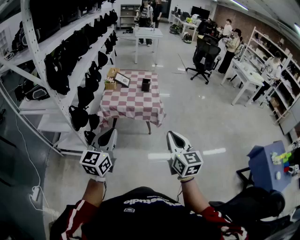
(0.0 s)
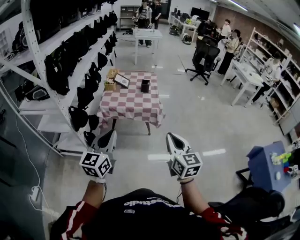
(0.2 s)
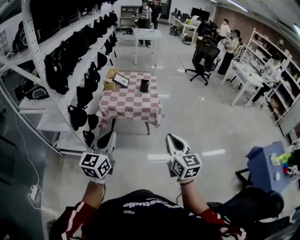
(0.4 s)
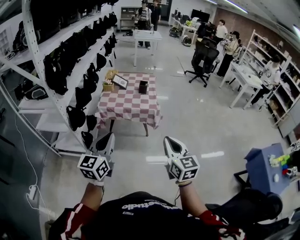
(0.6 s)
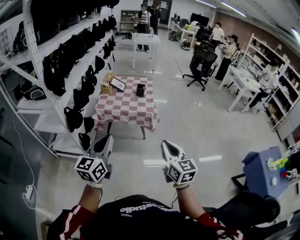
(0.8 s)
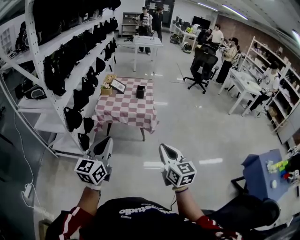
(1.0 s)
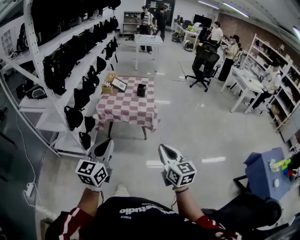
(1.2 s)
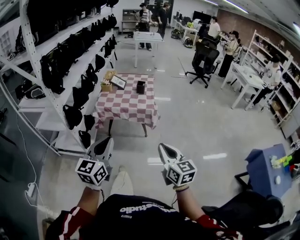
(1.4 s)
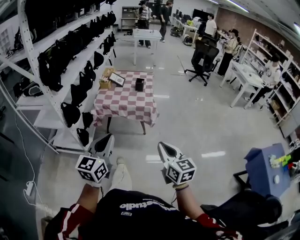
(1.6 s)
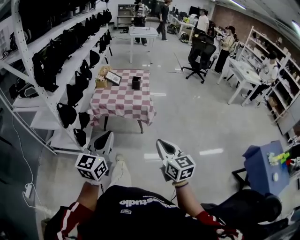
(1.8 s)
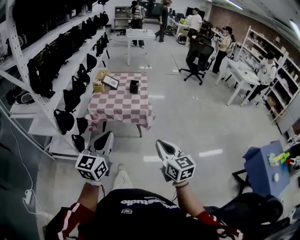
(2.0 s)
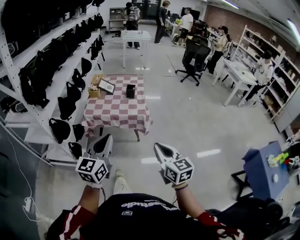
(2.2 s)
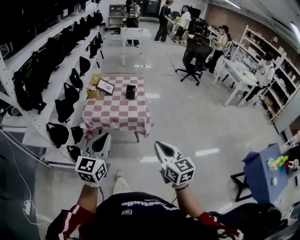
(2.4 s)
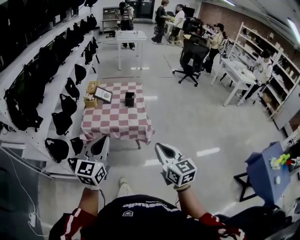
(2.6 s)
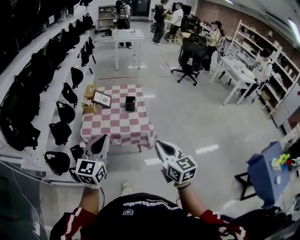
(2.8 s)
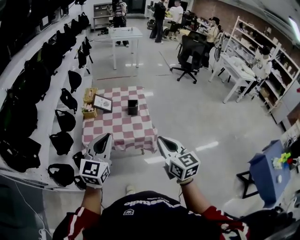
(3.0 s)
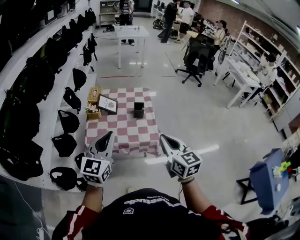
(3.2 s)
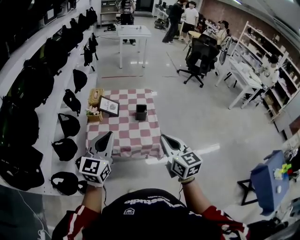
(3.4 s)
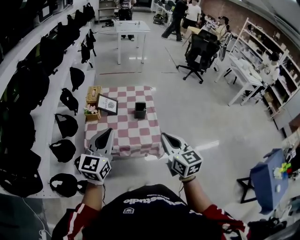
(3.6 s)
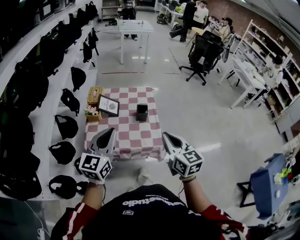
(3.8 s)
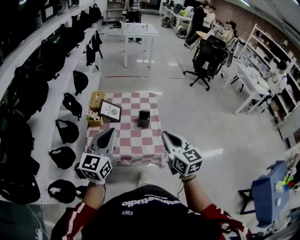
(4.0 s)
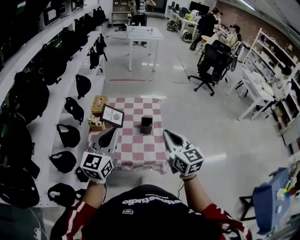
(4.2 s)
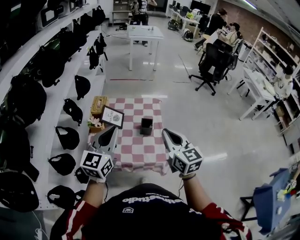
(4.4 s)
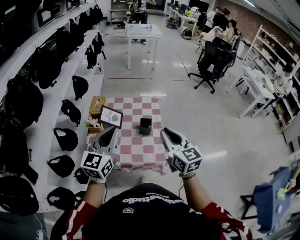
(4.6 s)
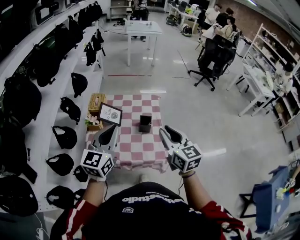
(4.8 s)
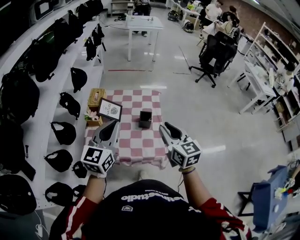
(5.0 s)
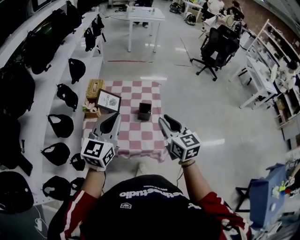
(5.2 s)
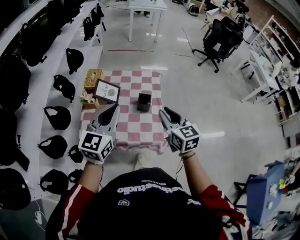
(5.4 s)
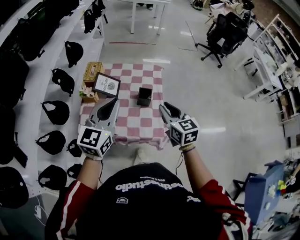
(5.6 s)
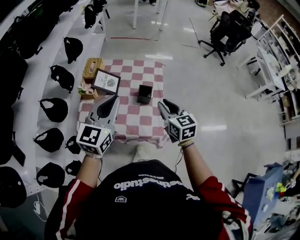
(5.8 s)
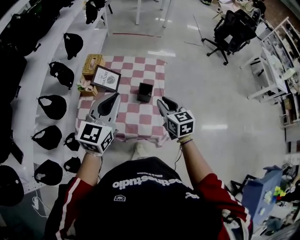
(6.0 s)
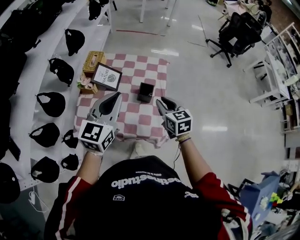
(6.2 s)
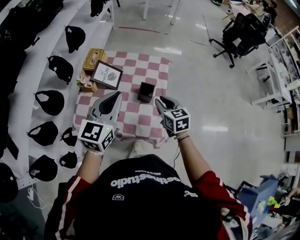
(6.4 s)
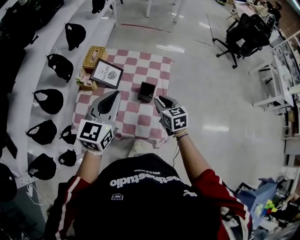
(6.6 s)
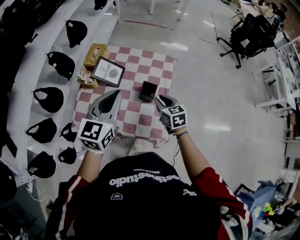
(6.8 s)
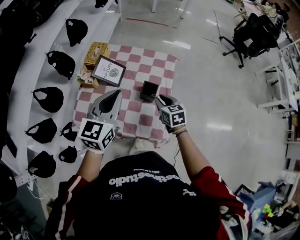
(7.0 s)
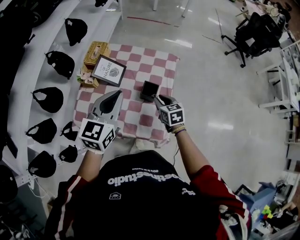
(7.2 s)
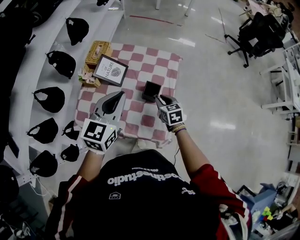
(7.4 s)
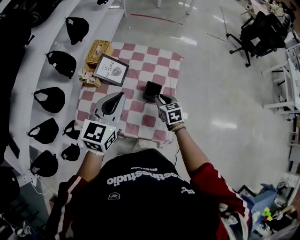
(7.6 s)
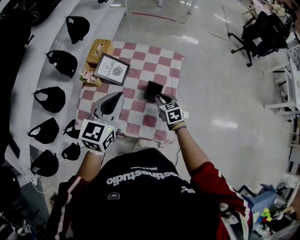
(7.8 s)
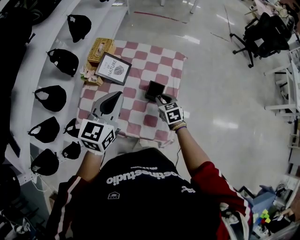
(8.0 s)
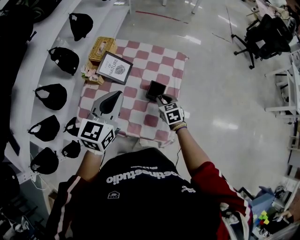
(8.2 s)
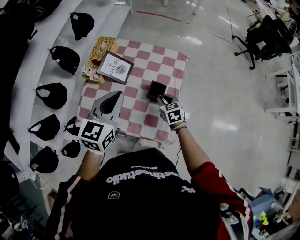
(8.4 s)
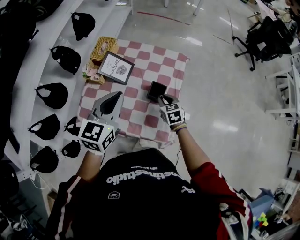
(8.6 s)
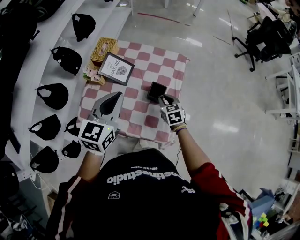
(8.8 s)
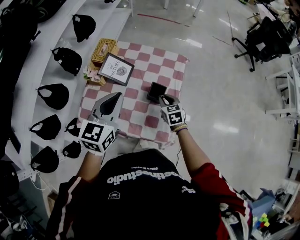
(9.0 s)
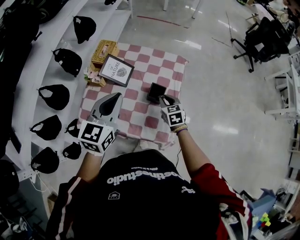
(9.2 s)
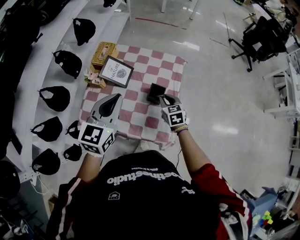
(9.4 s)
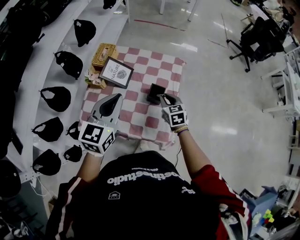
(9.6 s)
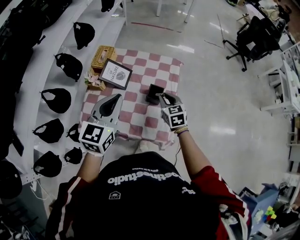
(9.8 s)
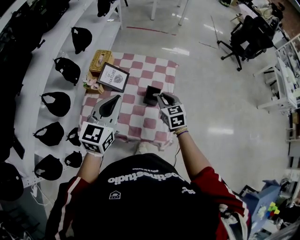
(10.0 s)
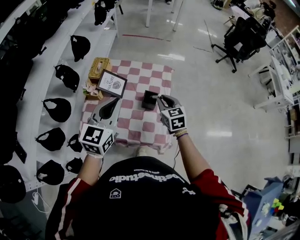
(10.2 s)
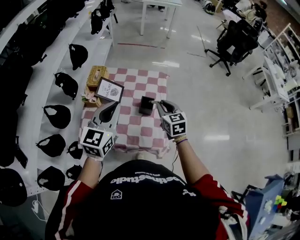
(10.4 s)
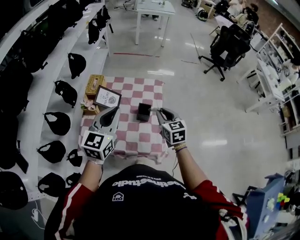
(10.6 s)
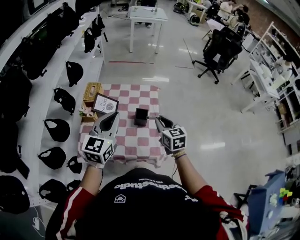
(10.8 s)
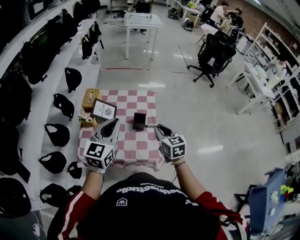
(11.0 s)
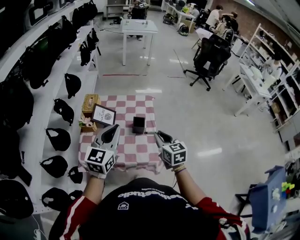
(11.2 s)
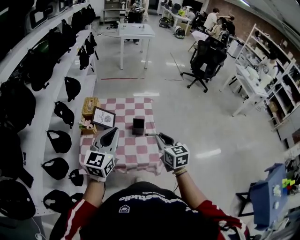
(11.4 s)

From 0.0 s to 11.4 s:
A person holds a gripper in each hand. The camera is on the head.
From 0.0 s to 1.4 s: The right gripper goes roughly 5 cm backward. The left gripper moves to the right and backward, about 10 cm.
From 1.4 s to 2.8 s: Both grippers move forward, some 30 cm.
From 2.8 s to 4.2 s: Both grippers travel together forward, roughly 30 cm.
From 4.2 s to 5.6 s: The right gripper moves downward and forward, some 15 cm. Meanwhile the left gripper is displaced forward by approximately 5 cm.
From 5.6 s to 7.2 s: The left gripper shifts roughly 10 cm forward and downward. Meanwhile the right gripper goes about 25 cm downward and forward, and rotates about 20 degrees.
From 7.2 s to 8.6 s: The right gripper moves some 5 cm.
From 8.6 s to 10.0 s: The right gripper is displaced upward by approximately 15 cm, while the left gripper shifts by about 5 cm.
From 10.0 s to 11.4 s: The right gripper is displaced backward and upward by approximately 20 cm. The left gripper goes about 10 cm backward and upward.

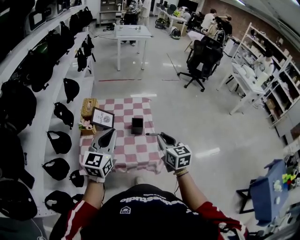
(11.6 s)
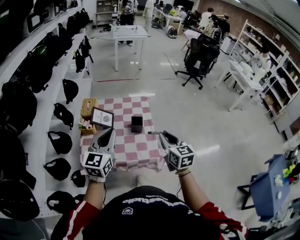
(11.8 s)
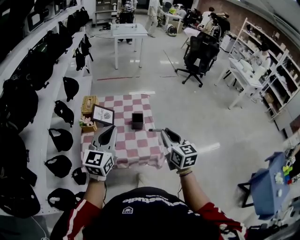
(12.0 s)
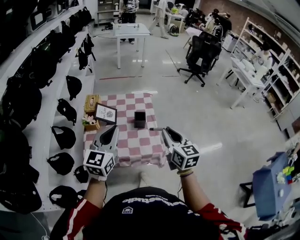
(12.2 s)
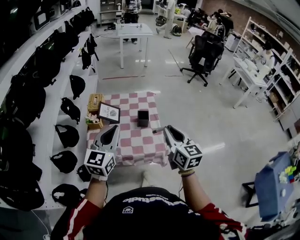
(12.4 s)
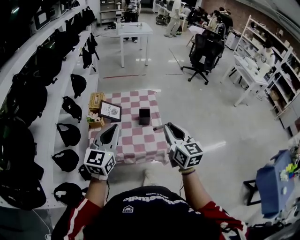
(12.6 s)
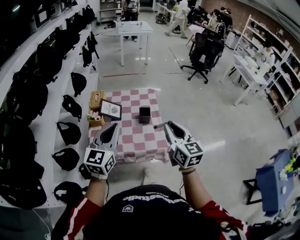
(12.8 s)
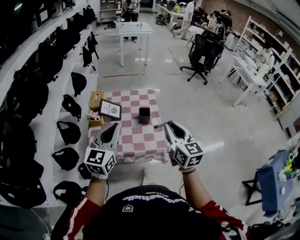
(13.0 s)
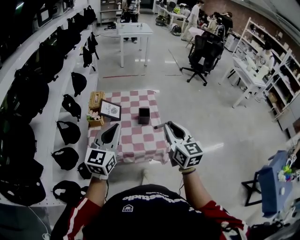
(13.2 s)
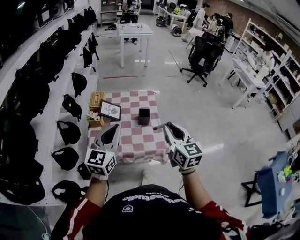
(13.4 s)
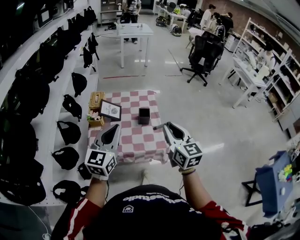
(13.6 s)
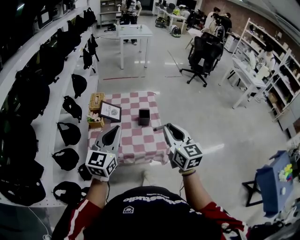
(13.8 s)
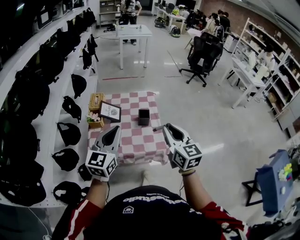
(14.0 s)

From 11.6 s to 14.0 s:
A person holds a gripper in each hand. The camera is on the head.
From 11.6 s to 12.8 s: The left gripper travels backward by roughly 5 cm; the right gripper is displaced upward and backward by about 10 cm.
From 12.8 s to 14.0 s: There are only small adjustments of the grippers.

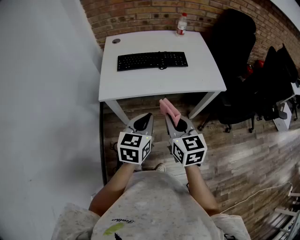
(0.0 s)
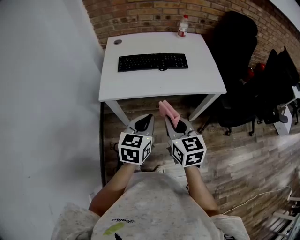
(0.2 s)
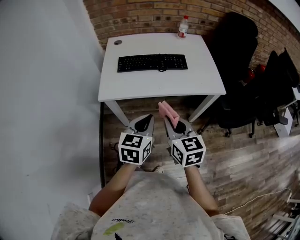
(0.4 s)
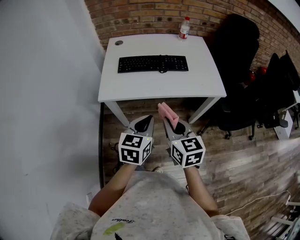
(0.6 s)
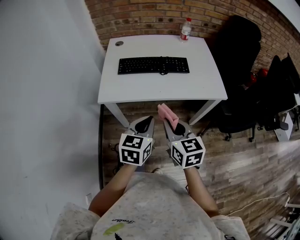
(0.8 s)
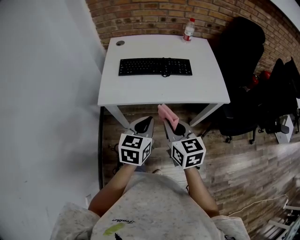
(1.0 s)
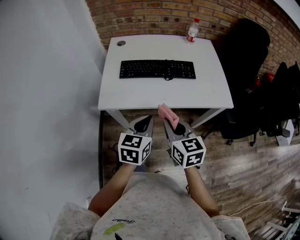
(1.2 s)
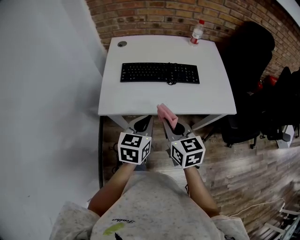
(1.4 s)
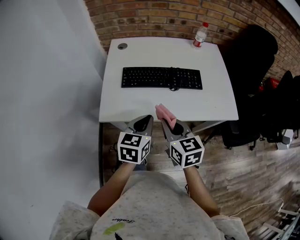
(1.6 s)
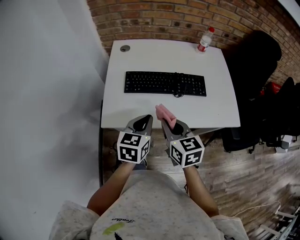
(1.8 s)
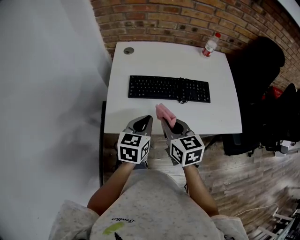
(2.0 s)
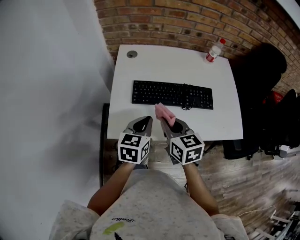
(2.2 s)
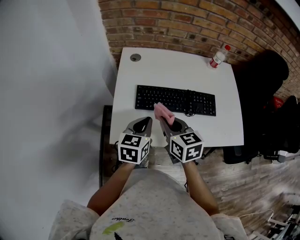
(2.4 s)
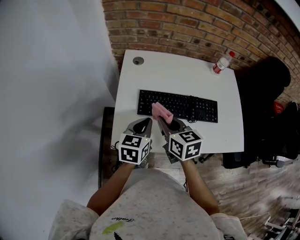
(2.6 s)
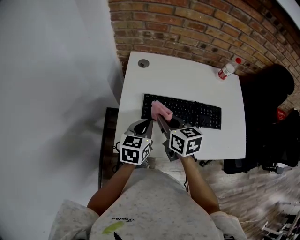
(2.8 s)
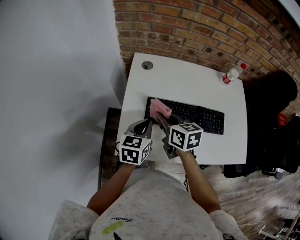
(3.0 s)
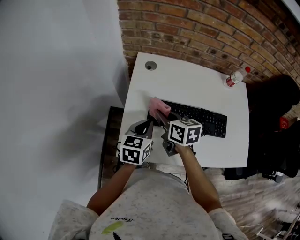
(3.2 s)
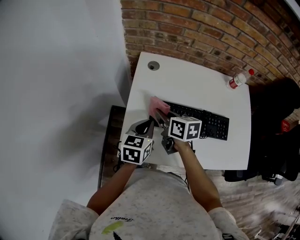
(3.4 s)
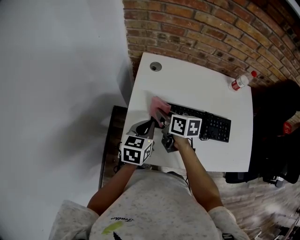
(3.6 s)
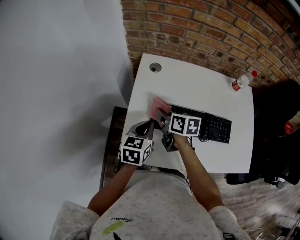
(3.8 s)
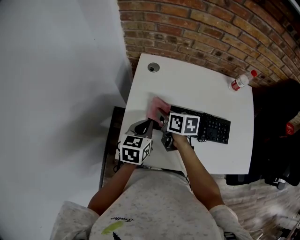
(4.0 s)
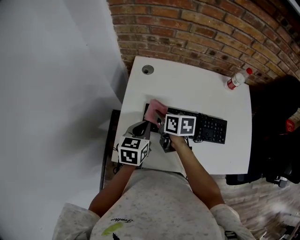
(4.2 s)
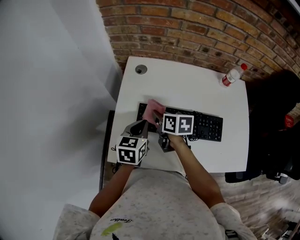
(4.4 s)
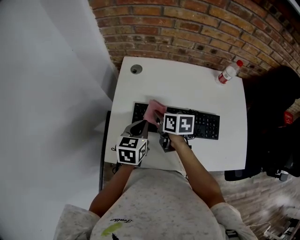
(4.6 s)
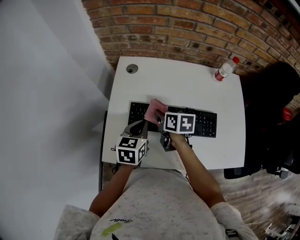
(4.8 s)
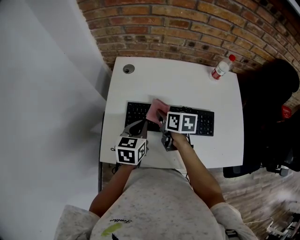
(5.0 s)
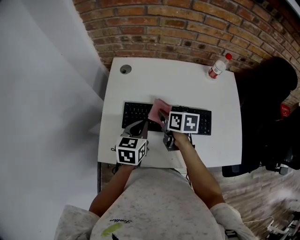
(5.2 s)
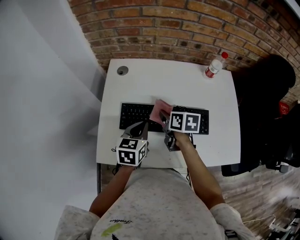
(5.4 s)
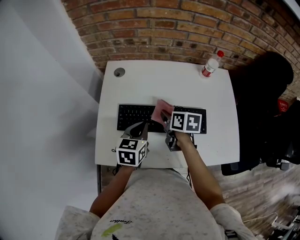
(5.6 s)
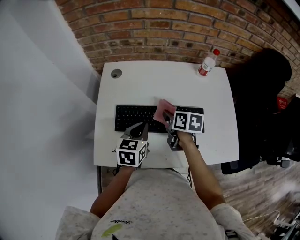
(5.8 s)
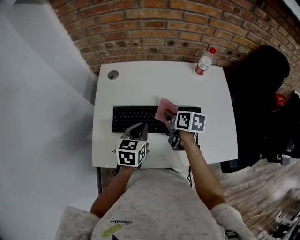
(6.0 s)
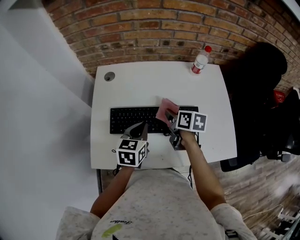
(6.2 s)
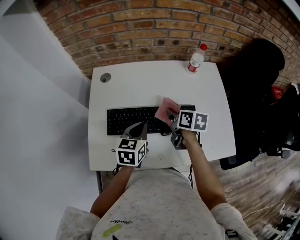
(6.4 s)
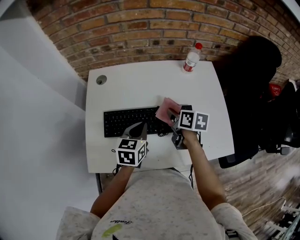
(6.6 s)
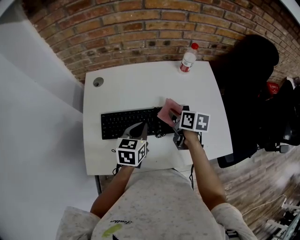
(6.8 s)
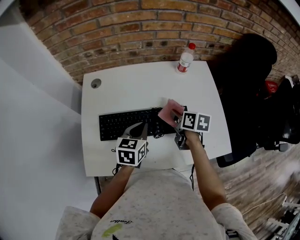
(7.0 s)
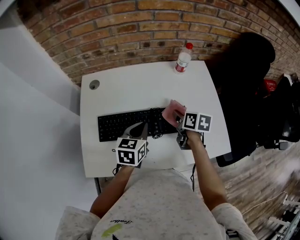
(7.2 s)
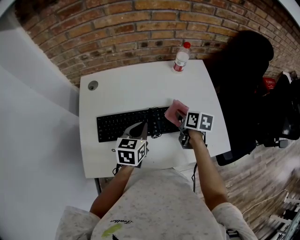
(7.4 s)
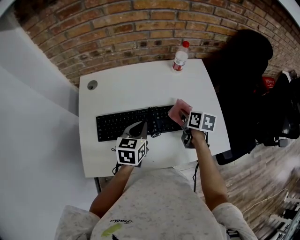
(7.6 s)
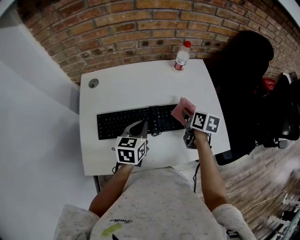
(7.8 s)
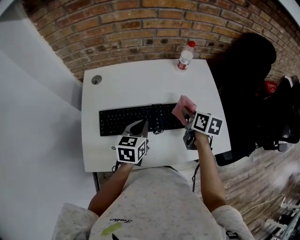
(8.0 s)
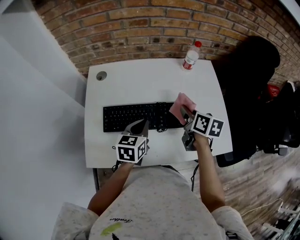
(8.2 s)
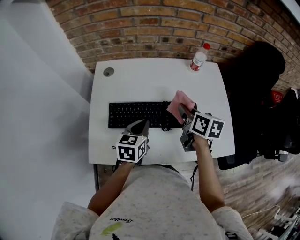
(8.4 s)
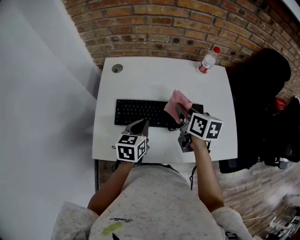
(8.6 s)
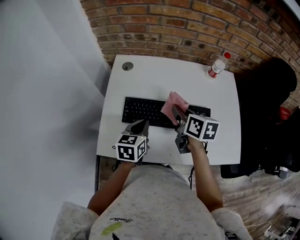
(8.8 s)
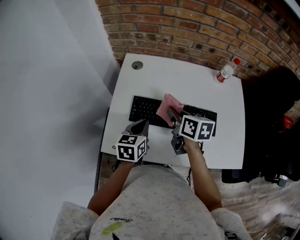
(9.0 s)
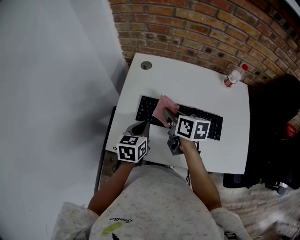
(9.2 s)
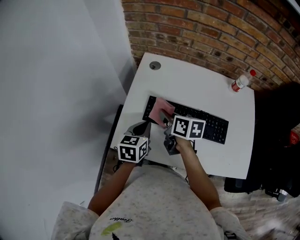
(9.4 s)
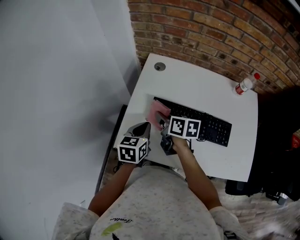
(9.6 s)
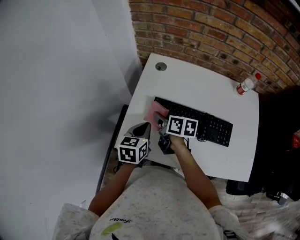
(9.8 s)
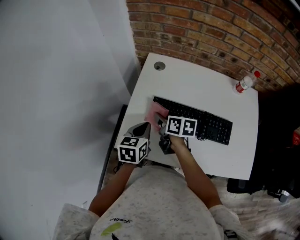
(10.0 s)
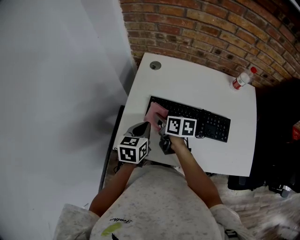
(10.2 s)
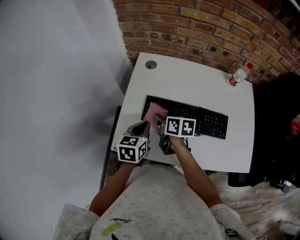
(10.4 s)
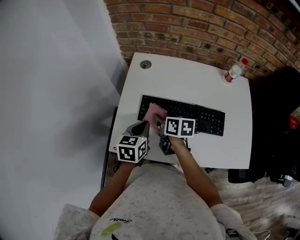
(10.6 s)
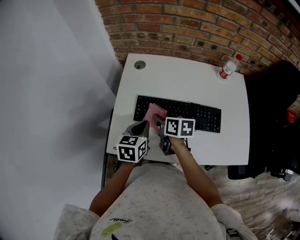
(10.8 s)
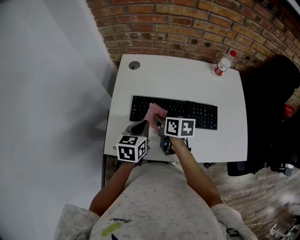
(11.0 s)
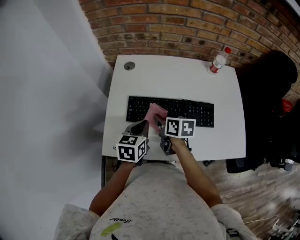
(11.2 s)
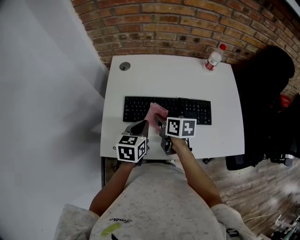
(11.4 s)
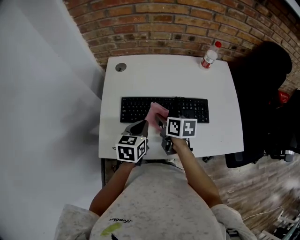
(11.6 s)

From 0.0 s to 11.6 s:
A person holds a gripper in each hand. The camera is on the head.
From 0.0 s to 1.4 s: The grippers both shift forward by some 15 cm.
From 1.4 s to 2.8 s: The two grippers go approximately 30 cm forward and to the left.
From 2.8 s to 4.4 s: The right gripper moves forward and downward, roughly 10 cm. The left gripper goes roughly 5 cm forward.
From 4.4 s to 5.8 s: The left gripper is displaced to the right by about 10 cm. Meanwhile the right gripper goes roughly 15 cm to the right.
From 5.8 s to 7.2 s: The right gripper goes roughly 15 cm to the right. The left gripper shifts approximately 10 cm to the right.
From 7.2 s to 8.8 s: The right gripper is displaced to the left and upward by roughly 15 cm. The left gripper heads to the left and backward, covering about 10 cm.
From 8.8 s to 10.2 s: The right gripper is displaced to the left and downward by roughly 20 cm. Meanwhile the left gripper is displaced to the left by about 10 cm.
From 10.2 s to 11.6 s: The two grippers go some 10 cm to the right.
